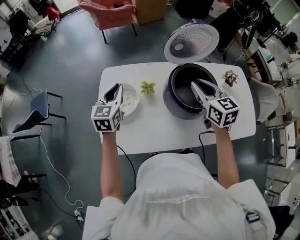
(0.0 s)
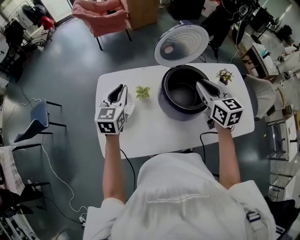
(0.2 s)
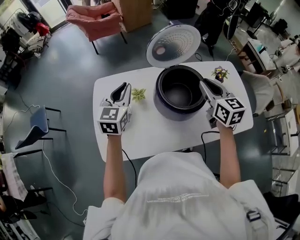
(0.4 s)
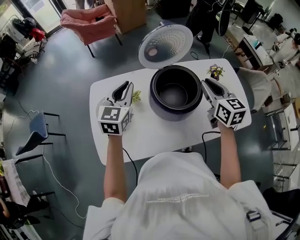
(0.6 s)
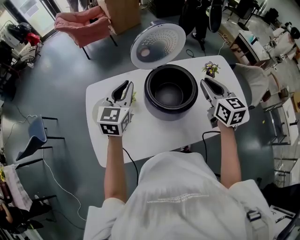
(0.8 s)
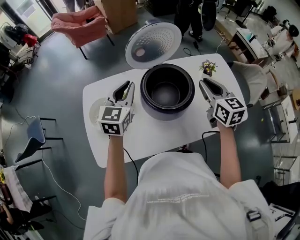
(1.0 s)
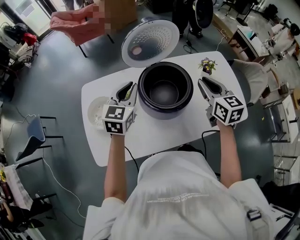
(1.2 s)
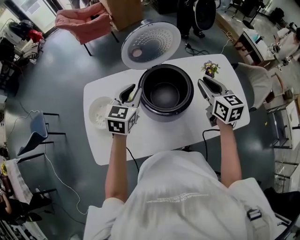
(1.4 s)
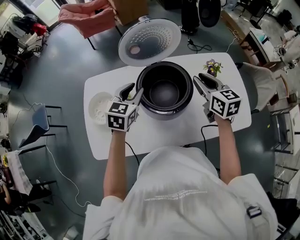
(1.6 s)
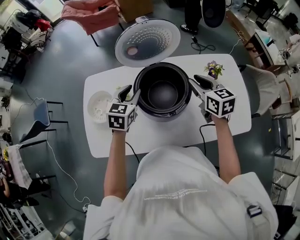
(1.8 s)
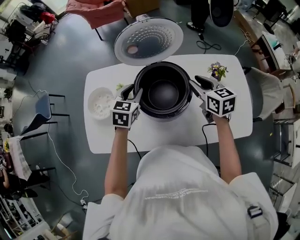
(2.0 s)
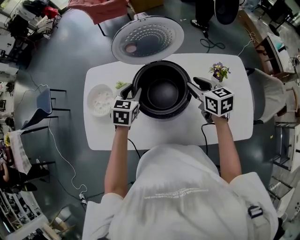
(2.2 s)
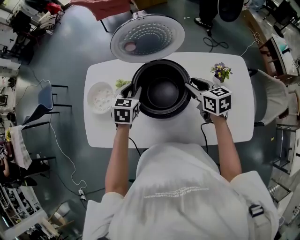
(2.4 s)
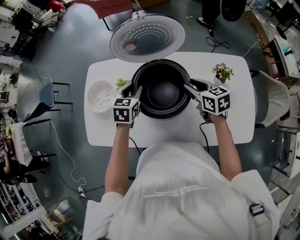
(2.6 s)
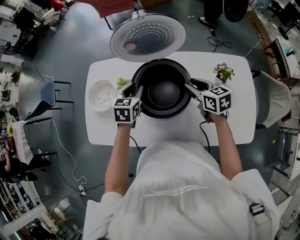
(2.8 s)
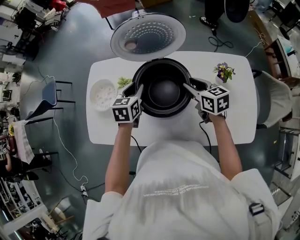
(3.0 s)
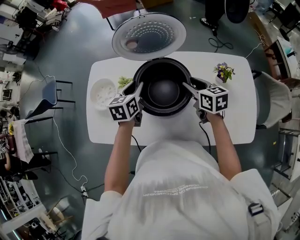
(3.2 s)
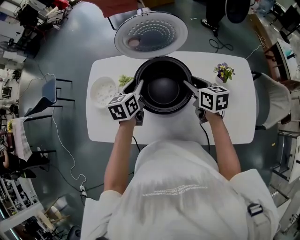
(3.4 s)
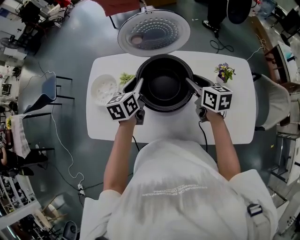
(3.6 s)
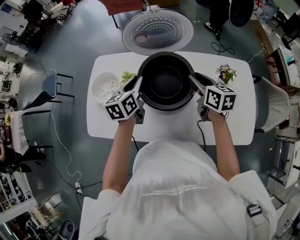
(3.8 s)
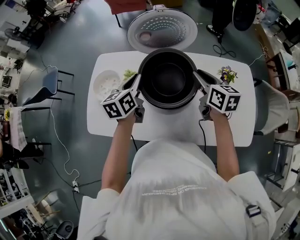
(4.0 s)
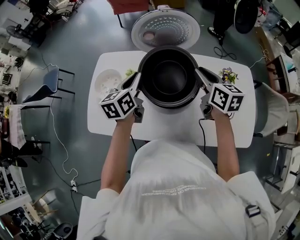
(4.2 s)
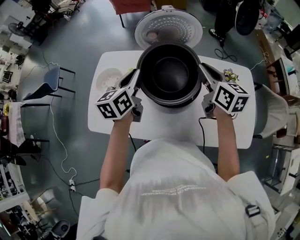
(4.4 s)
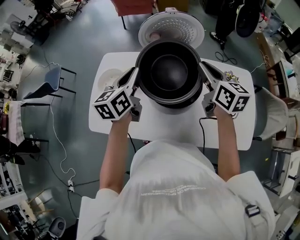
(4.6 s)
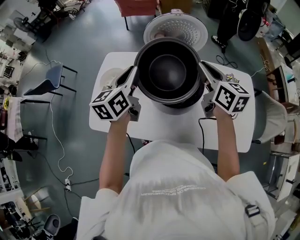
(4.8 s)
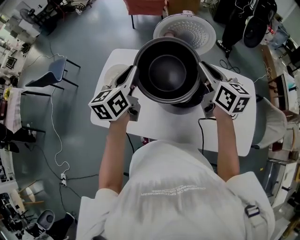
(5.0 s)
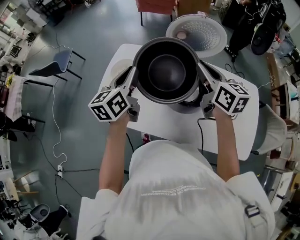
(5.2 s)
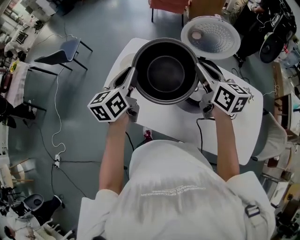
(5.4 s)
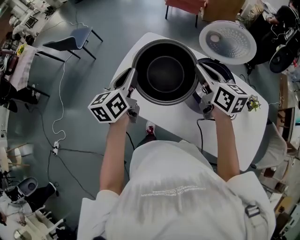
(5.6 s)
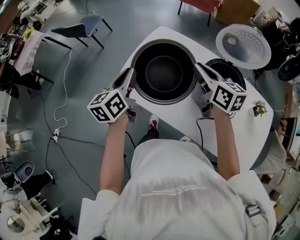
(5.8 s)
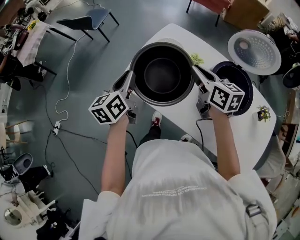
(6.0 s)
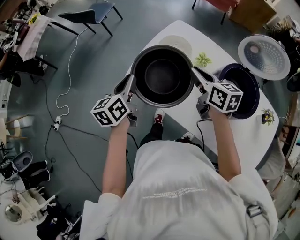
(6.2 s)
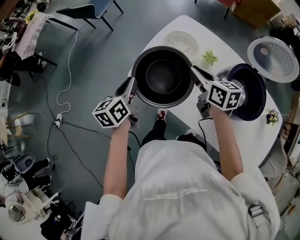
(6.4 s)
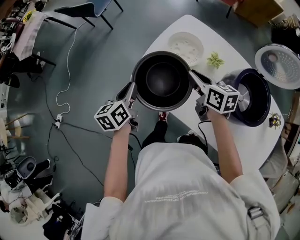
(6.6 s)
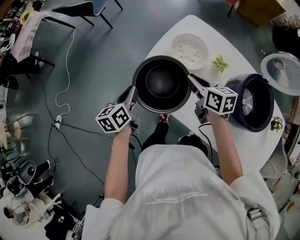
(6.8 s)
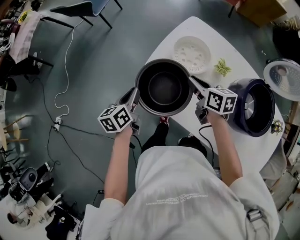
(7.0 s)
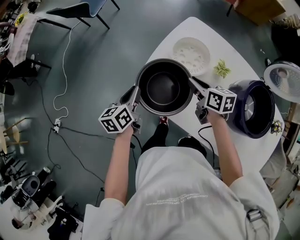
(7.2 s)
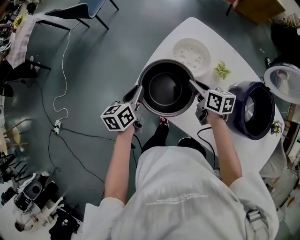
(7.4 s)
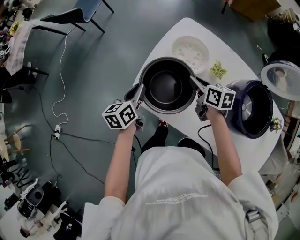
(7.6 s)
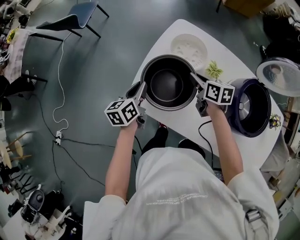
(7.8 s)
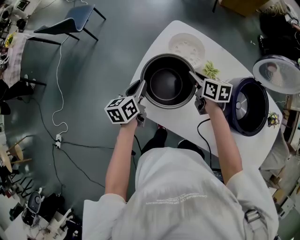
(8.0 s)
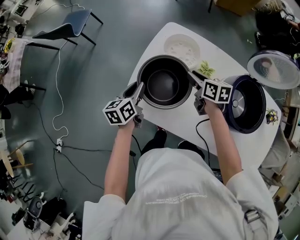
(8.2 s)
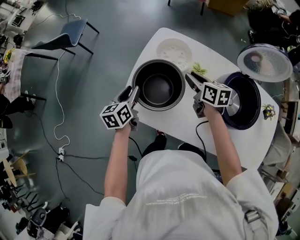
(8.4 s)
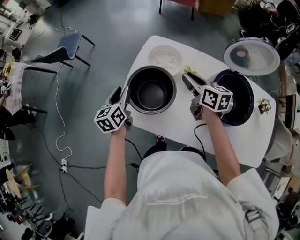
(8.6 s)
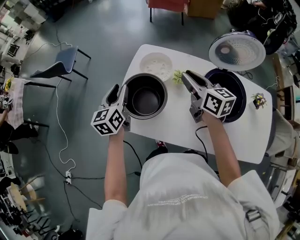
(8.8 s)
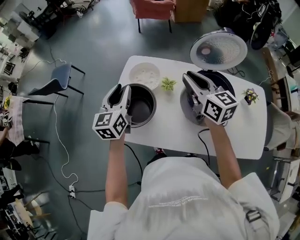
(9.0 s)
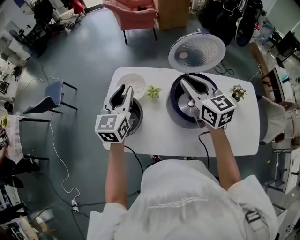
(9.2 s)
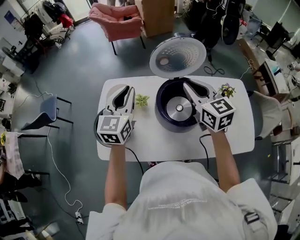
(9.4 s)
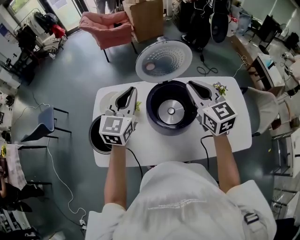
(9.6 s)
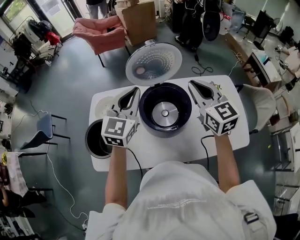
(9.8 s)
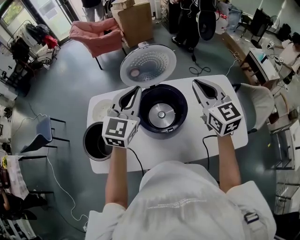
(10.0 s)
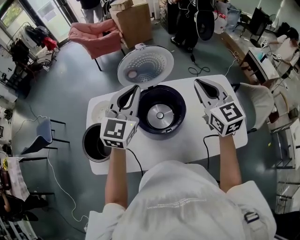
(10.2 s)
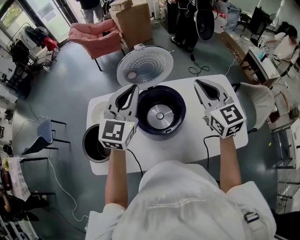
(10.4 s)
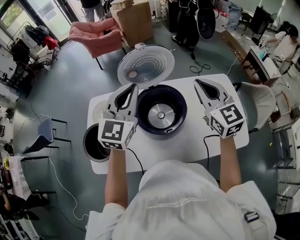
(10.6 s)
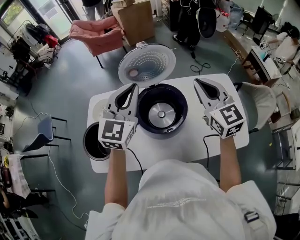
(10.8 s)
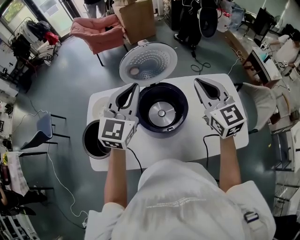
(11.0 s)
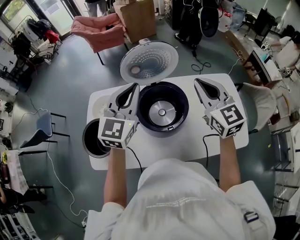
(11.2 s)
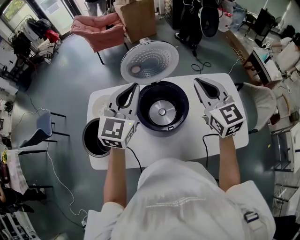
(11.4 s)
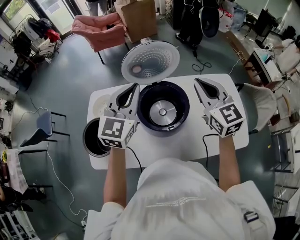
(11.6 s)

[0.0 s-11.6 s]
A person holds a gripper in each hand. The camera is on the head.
0.0 to 1.4 s: Both grippers travel together to the right, some 20 cm.
1.4 to 2.8 s: The grippers both shift downward by some 10 cm. The right gripper rotates some 30 degrees, while the left gripper changes its angle by roughly 30 degrees.
2.8 to 4.4 s: The grippers both shift upward by approximately 15 cm. The right gripper closes its fingers. Meanwhile the left gripper swivels roughly 30 degrees, and closes.
4.4 to 5.8 s: The right gripper ends up roughly 30 cm from where it was, and swivels about 30 degrees. Meanwhile the left gripper moves about 30 cm, and rotates roughly 30 degrees.
5.8 to 7.2 s: The left gripper moves downward and to the left, approximately 25 cm. The right gripper heads downward, to the left and forward, covering roughly 25 cm, and changes its angle by some 20 degrees.
7.2 to 8.8 s: The right gripper heads upward and to the right, covering roughly 20 cm, and turns by about 30 degrees; the left gripper is displaced upward, to the right and forward by some 20 cm, turns by about 30 degrees, and opens its fingers.
8.8 to 10.2 s: The left gripper changes place by approximately 50 cm, turns by about 60 degrees, and closes up. The right gripper changes place by approximately 40 cm, and swivels approximately 50 degrees.
10.2 to 11.6 s: The grippers make only small movements.

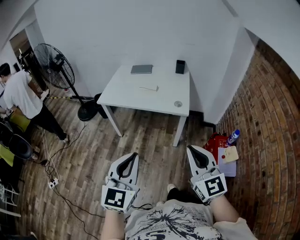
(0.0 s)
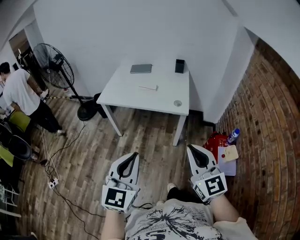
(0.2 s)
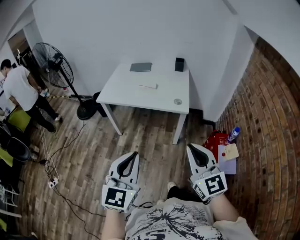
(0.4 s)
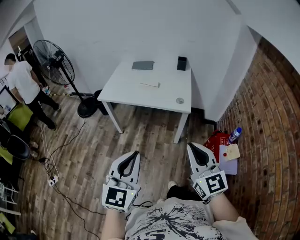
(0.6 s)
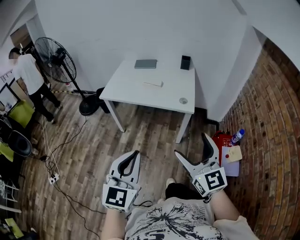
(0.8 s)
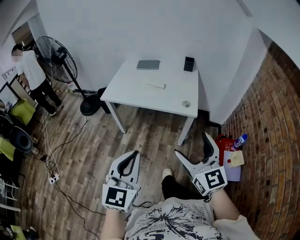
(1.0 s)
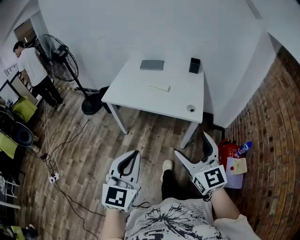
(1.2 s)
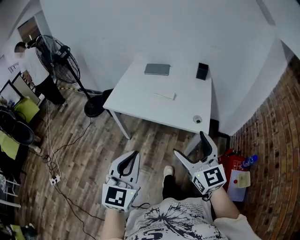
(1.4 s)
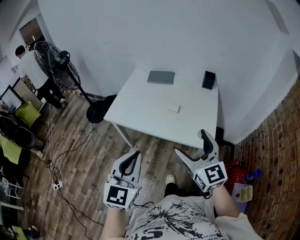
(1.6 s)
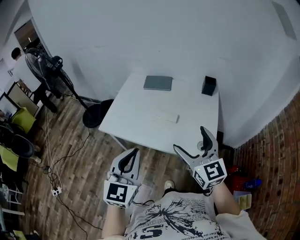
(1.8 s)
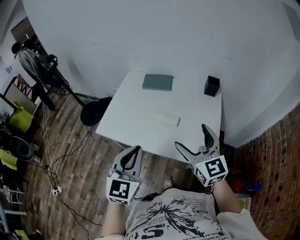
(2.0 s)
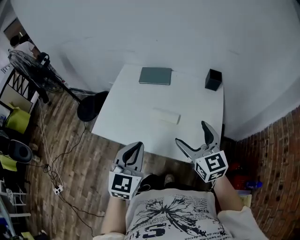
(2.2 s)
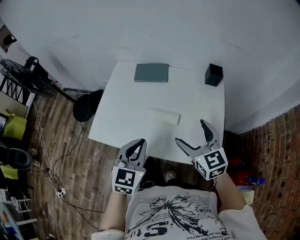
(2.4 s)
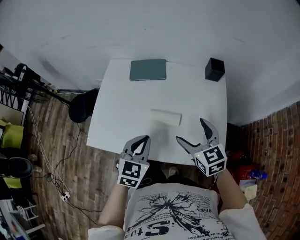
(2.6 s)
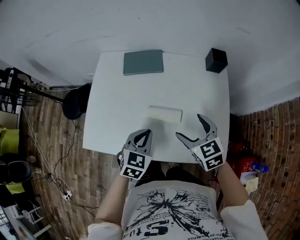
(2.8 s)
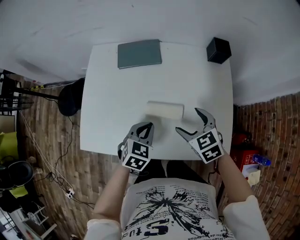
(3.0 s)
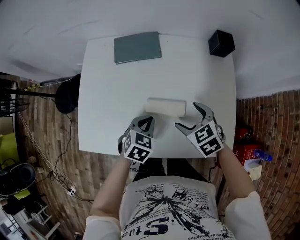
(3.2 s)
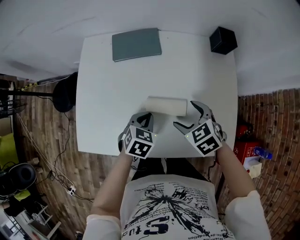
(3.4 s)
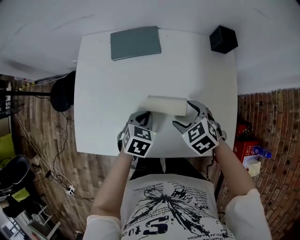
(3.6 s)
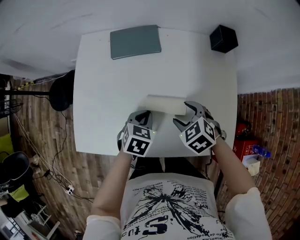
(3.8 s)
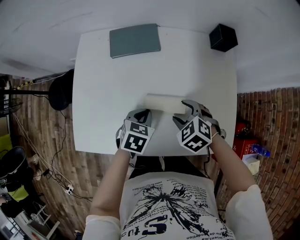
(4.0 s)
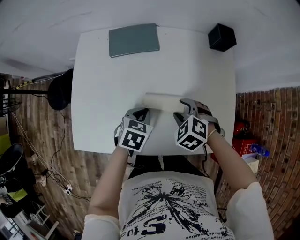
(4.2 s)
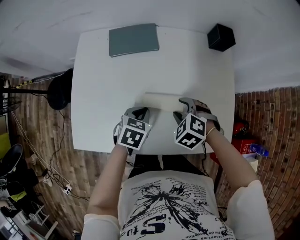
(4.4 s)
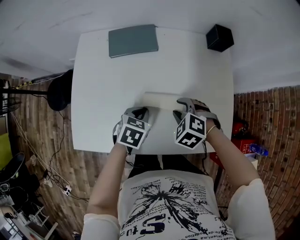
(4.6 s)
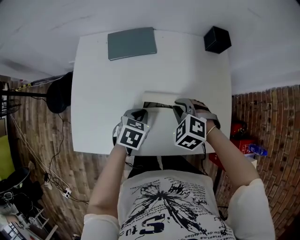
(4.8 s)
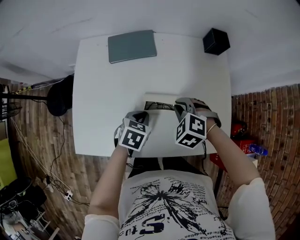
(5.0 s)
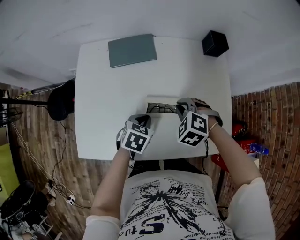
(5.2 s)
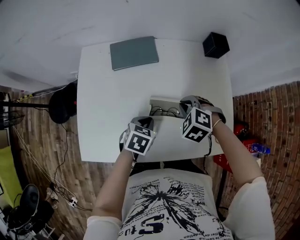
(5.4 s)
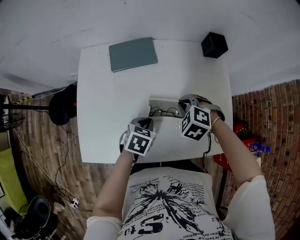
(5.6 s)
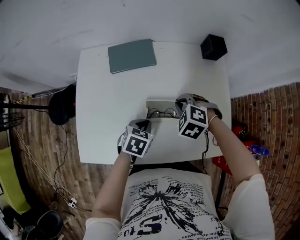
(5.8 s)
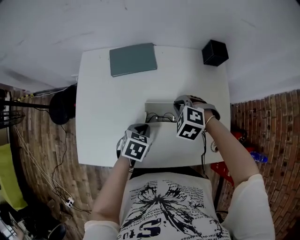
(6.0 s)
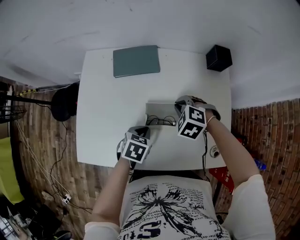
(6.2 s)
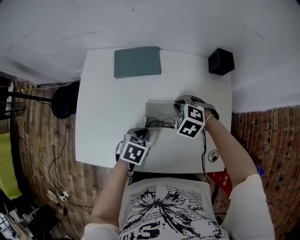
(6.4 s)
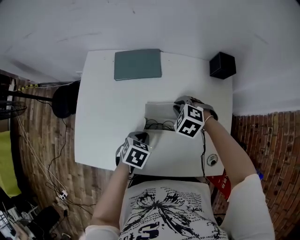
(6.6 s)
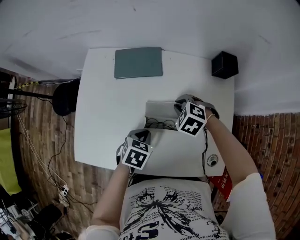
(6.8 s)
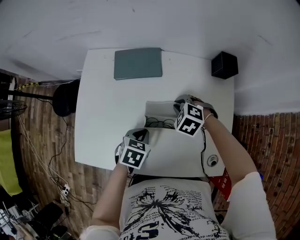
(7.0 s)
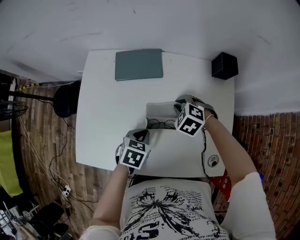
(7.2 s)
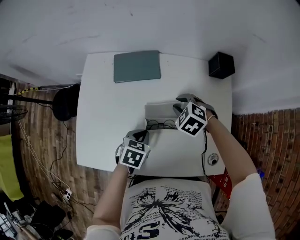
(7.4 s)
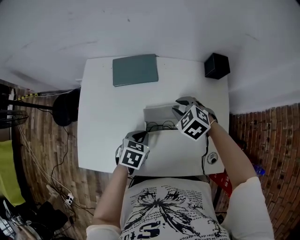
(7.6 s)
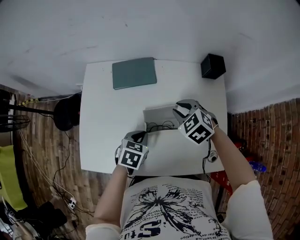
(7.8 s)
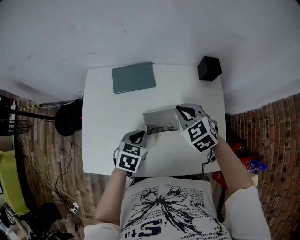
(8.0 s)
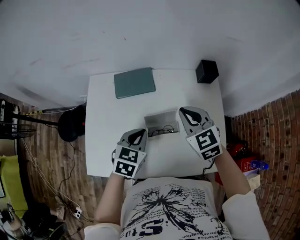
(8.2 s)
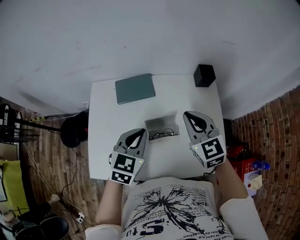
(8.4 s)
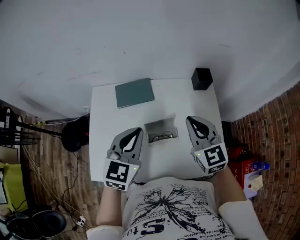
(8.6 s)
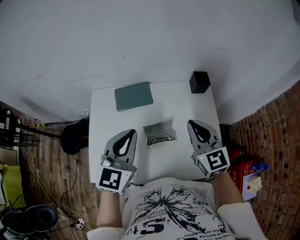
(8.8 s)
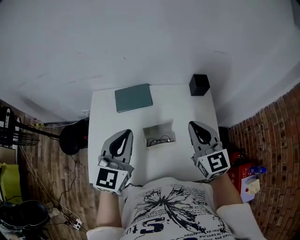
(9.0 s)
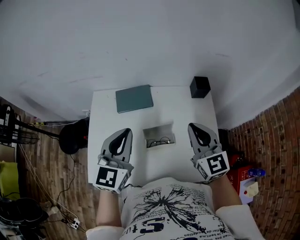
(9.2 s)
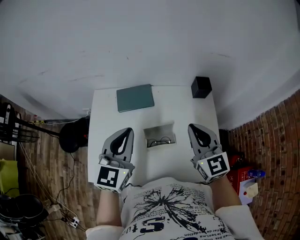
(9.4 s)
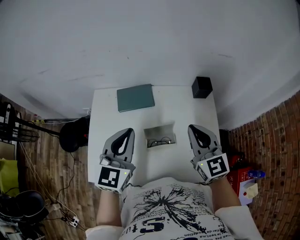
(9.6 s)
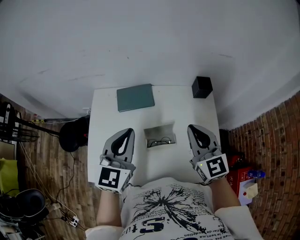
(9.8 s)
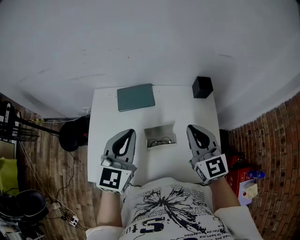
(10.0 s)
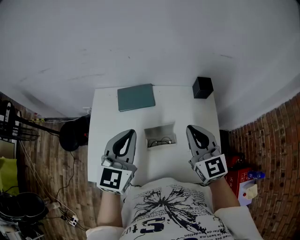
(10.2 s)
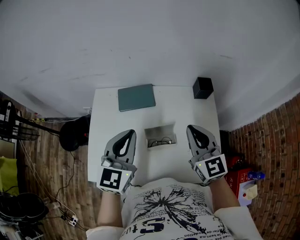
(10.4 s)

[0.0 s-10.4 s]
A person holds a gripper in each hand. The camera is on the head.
0.0 to 1.4 s: The two grippers go about 25 cm forward. The right gripper opens.
1.4 to 3.0 s: The pair of grippers is taken forward, approximately 50 cm. The two grippers go approximately 25 cm downward. The left gripper tips its fingers downward by about 40 degrees. Meanwhile the right gripper angles its fingers downward, by some 40 degrees.
3.0 to 4.4 s: Both grippers move downward, approximately 5 cm. The right gripper rotates roughly 30 degrees, and closes up.
4.4 to 6.0 s: The right gripper travels forward by roughly 5 cm, and closes up.
6.0 to 7.4 s: The right gripper is displaced forward by about 5 cm.
7.4 to 9.0 s: The grippers both shift upward by some 30 cm. The left gripper angles its fingers upward, by about 50 degrees; the right gripper angles its fingers upward, by roughly 50 degrees.
9.0 to 10.4 s: There are only small adjustments of the grippers.

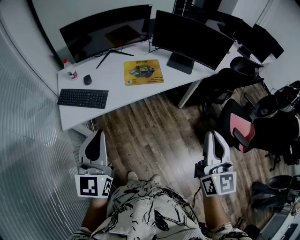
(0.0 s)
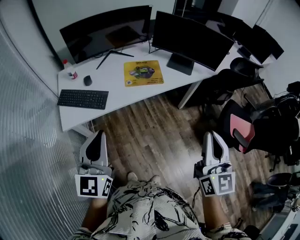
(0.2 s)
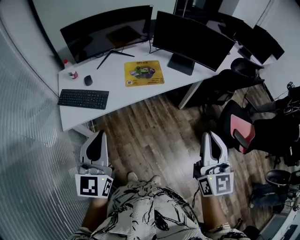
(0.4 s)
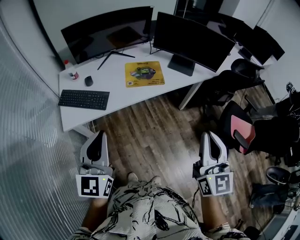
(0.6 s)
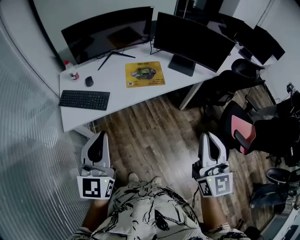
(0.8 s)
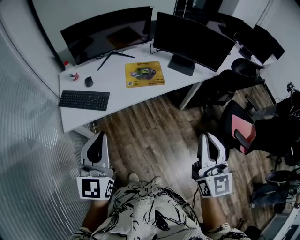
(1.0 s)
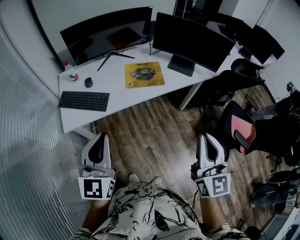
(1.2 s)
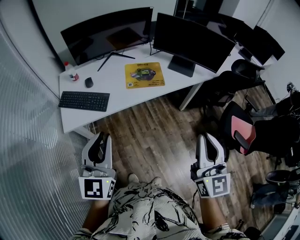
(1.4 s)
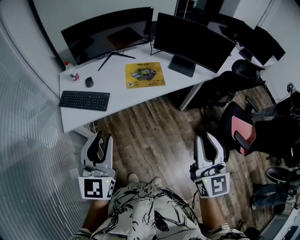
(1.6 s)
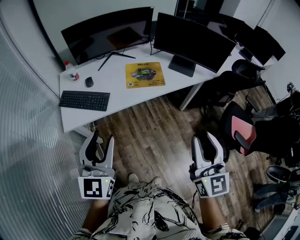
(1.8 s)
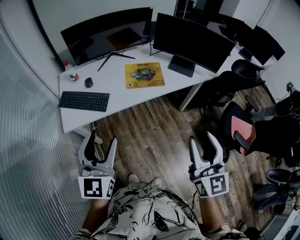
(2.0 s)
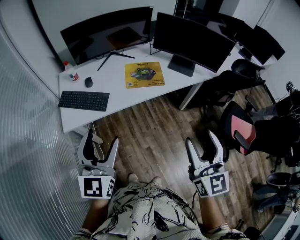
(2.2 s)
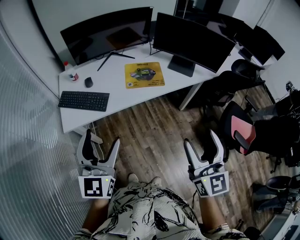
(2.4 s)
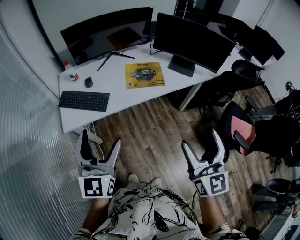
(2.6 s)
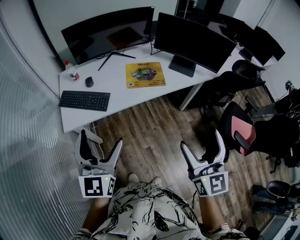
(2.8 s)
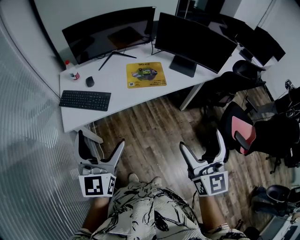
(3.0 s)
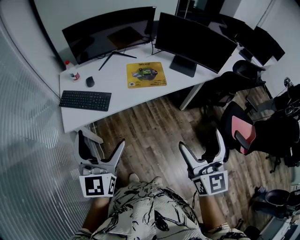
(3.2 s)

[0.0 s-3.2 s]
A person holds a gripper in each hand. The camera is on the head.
0.0 to 1.6 s: There are only small adjustments of the grippers.
1.6 to 3.2 s: The right gripper opens up. Meanwhile the left gripper opens up.
